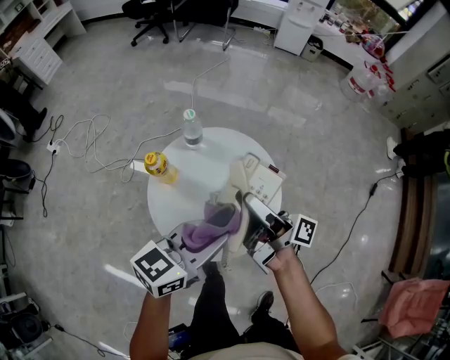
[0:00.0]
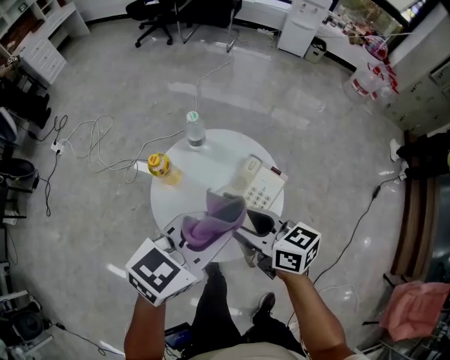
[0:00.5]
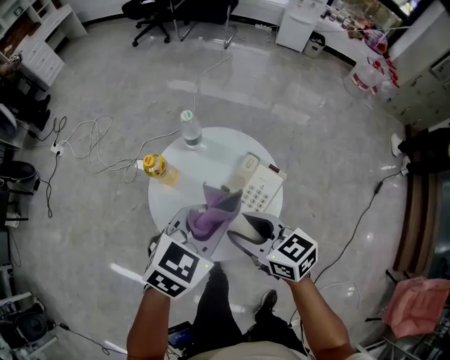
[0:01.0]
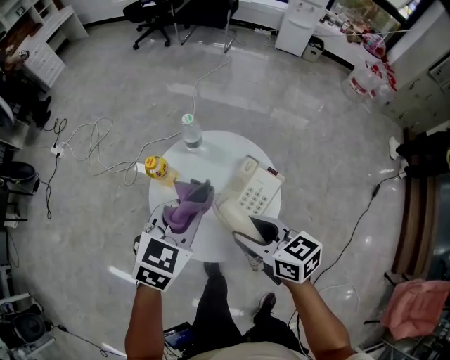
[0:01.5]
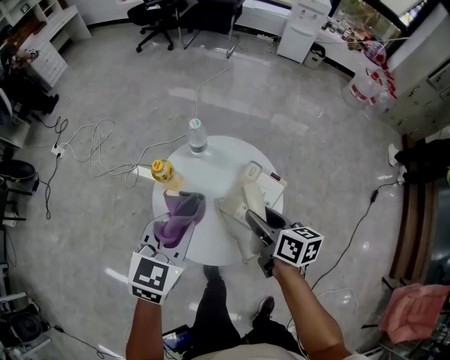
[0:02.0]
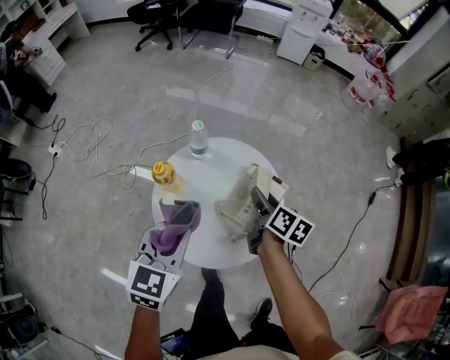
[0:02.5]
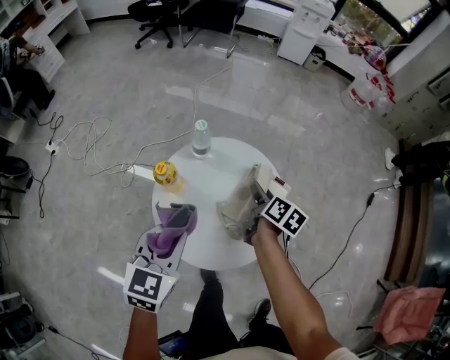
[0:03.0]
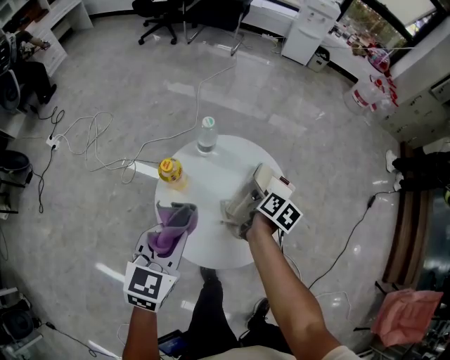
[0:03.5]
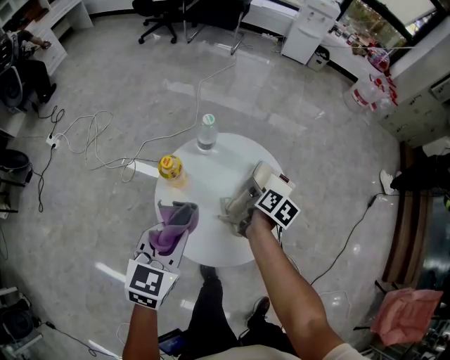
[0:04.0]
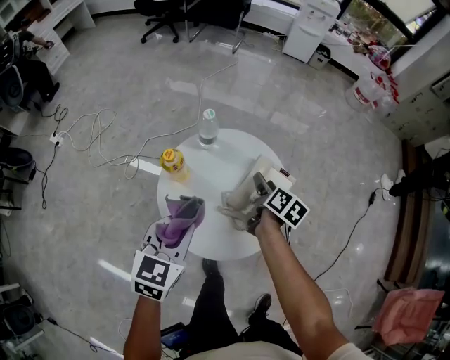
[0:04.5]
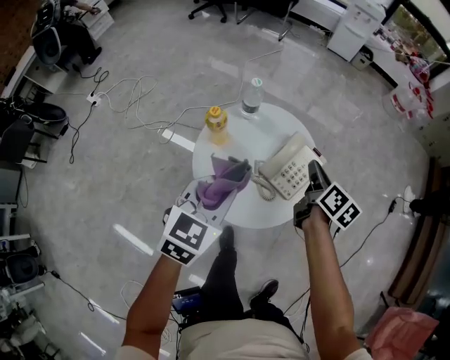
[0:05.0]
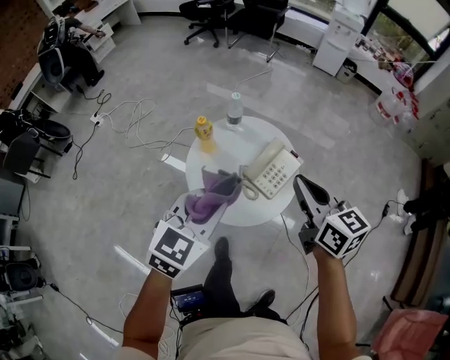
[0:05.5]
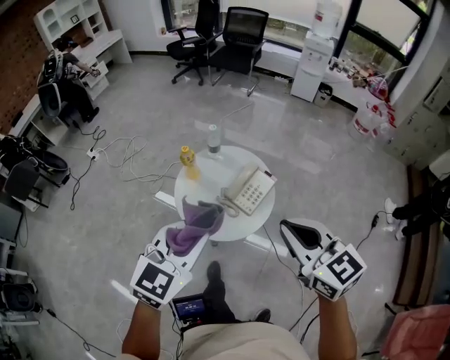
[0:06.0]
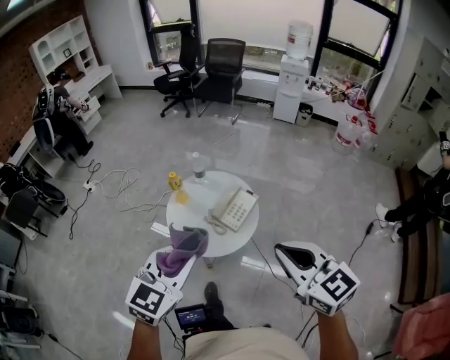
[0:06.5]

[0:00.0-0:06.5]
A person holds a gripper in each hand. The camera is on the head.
0:00.0 to 0:02.0: The right gripper heads downward, covering about 5 cm, and tilts its fingers roughly 40 degrees downward; the left gripper moves to the left, approximately 10 cm, and swivels roughly 40 degrees.
0:02.0 to 0:04.5: The right gripper is displaced downward and forward by roughly 15 cm, and rotates approximately 30 degrees. The left gripper changes place by roughly 5 cm.
0:04.5 to 0:06.5: The left gripper heads upward, backward and to the right, covering roughly 40 cm; the right gripper heads upward and backward, covering about 60 cm, rolls counterclockwise, seen from behind, by some 60 degrees, and closes.

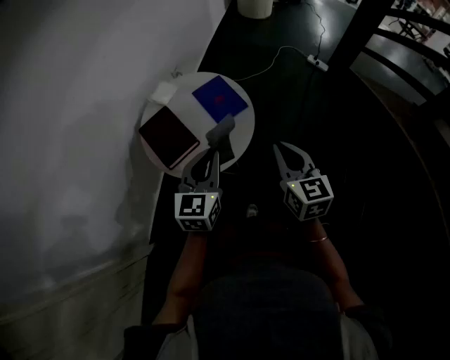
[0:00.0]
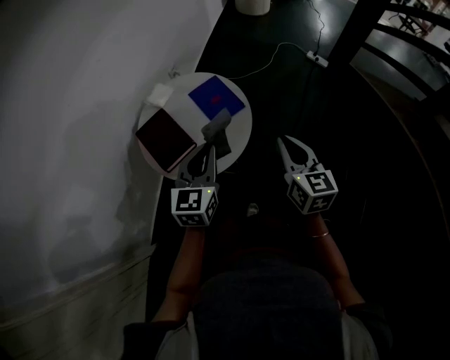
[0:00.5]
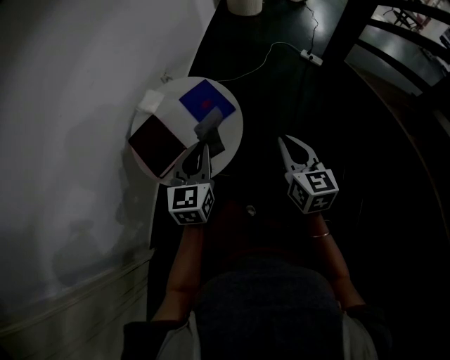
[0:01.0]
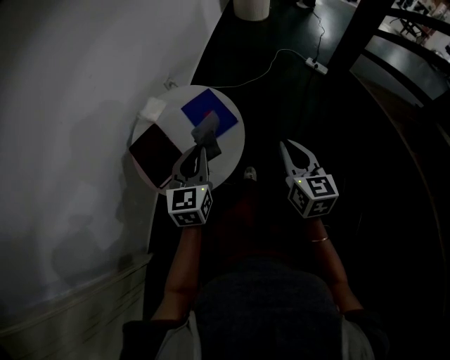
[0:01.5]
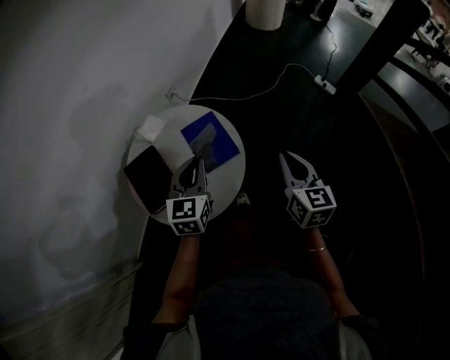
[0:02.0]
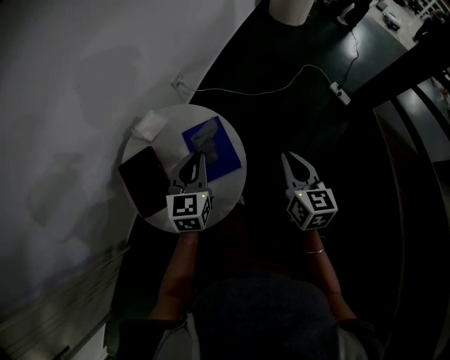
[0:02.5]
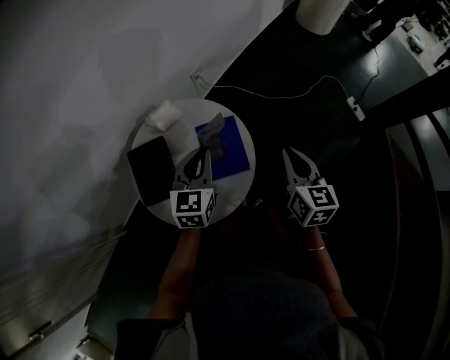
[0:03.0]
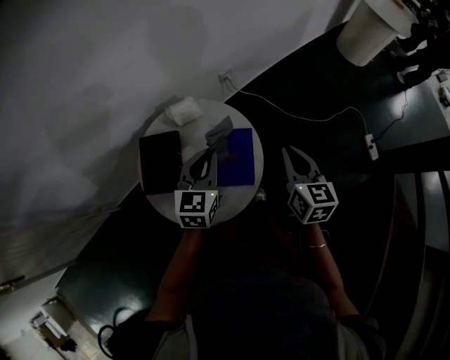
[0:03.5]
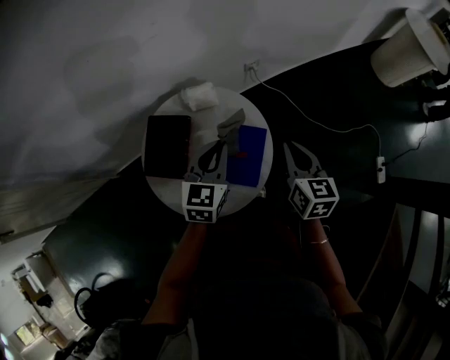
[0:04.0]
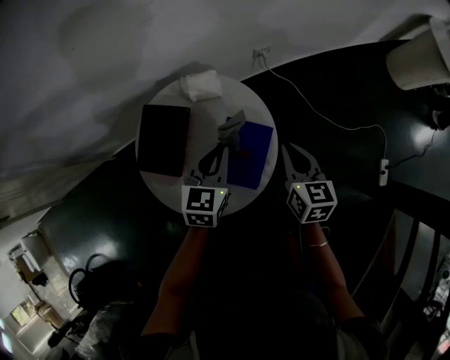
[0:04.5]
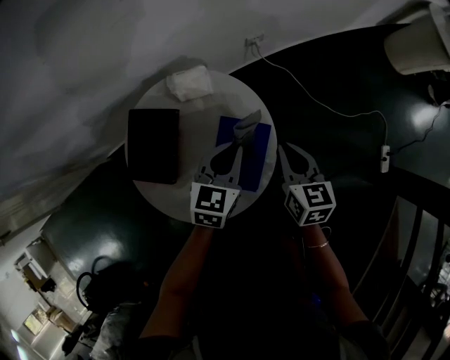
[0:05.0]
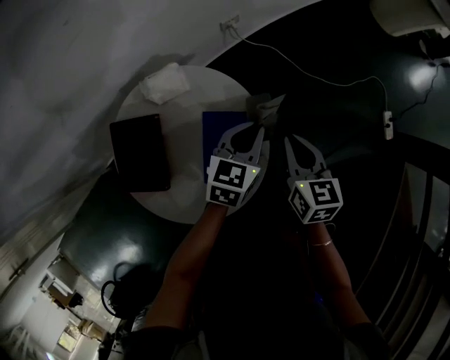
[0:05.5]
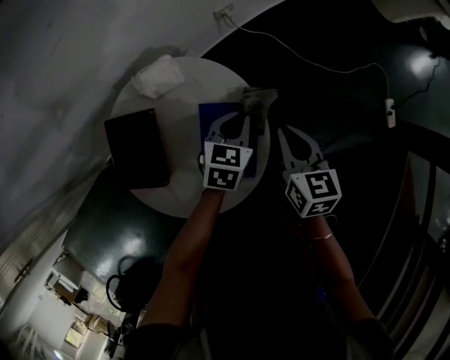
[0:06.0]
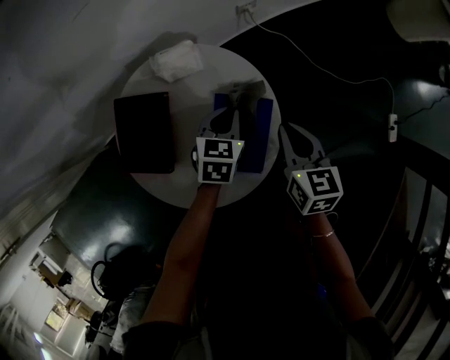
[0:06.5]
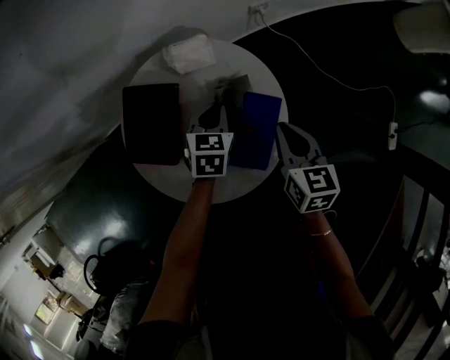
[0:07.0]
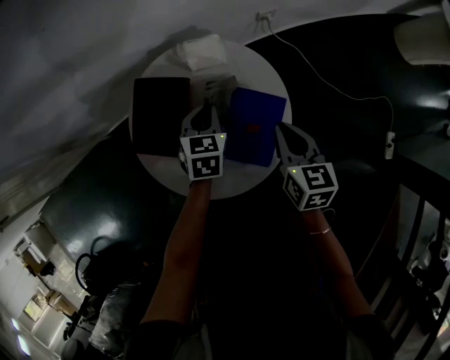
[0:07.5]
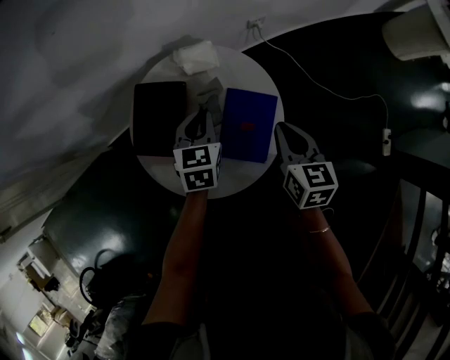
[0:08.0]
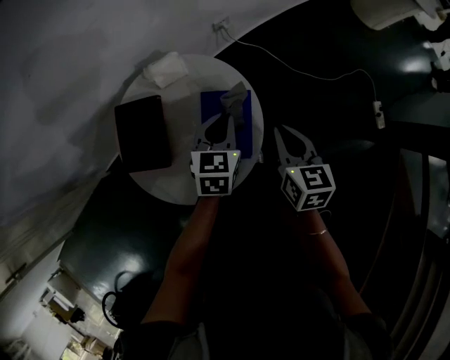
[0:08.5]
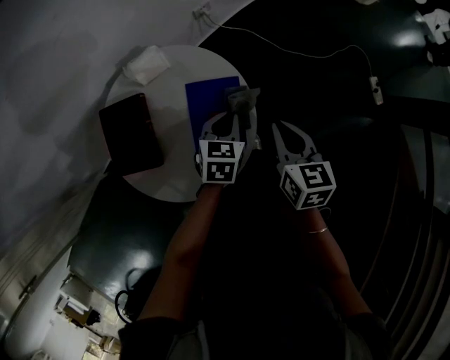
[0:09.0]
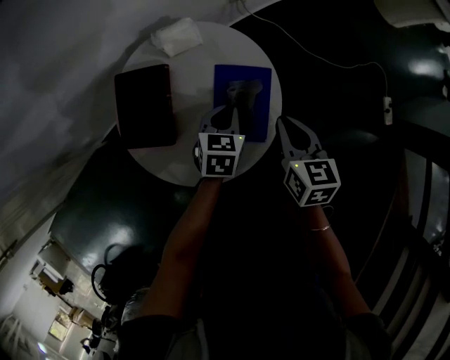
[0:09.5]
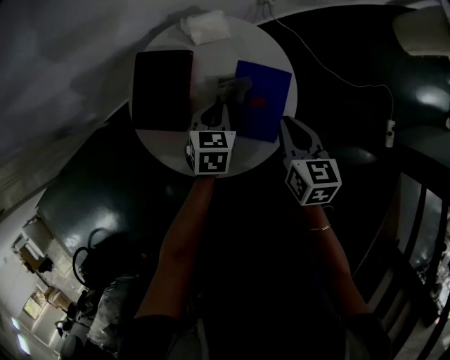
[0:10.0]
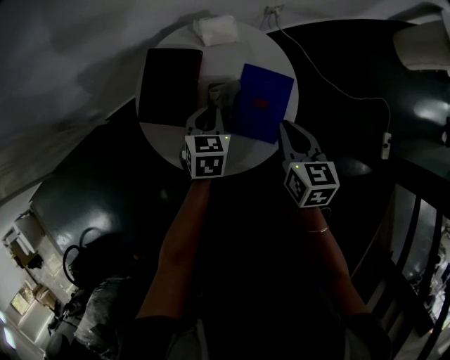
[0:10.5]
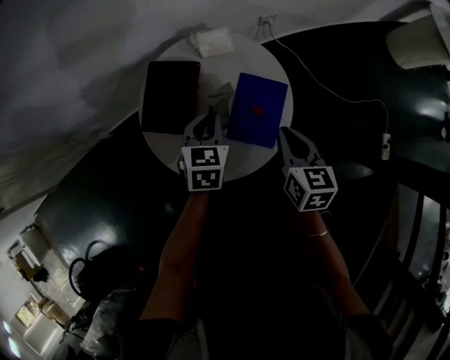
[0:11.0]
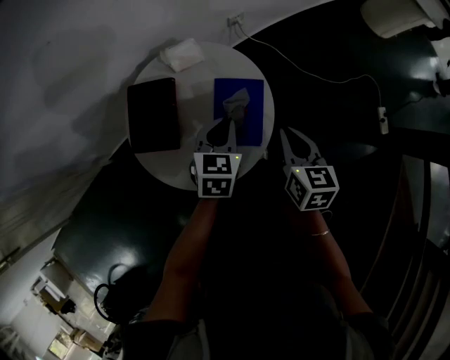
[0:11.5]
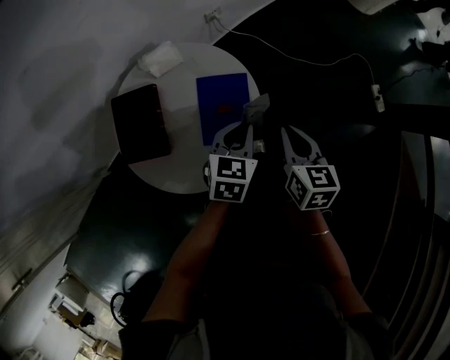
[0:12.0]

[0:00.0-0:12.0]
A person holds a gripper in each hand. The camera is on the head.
0:00.0 to 0:02.0: The left gripper heads forward, covering some 20 cm; the right gripper moves forward and to the right, roughly 20 cm.
0:02.0 to 0:04.0: The right gripper changes place by about 30 cm, and changes its angle by about 40 degrees, while the left gripper changes place by some 15 cm, and rotates roughly 30 degrees.
0:04.0 to 0:06.0: The left gripper heads downward and to the right, covering approximately 20 cm, and swivels roughly 30 degrees; the right gripper heads downward, covering approximately 10 cm.
0:06.0 to 0:08.0: The right gripper moves to the left, some 5 cm. The left gripper travels to the left by approximately 20 cm, and rotates approximately 30 degrees.
0:08.0 to 0:10.0: The left gripper travels downward and backward by about 10 cm, and moves roughly 15 cm to the right and comes back; the right gripper goes to the right and returns, roughly 5 cm each way.
0:10.0 to 0:12.0: The left gripper shifts by about 15 cm, and changes its angle by some 30 degrees, while the right gripper shifts by some 10 cm.

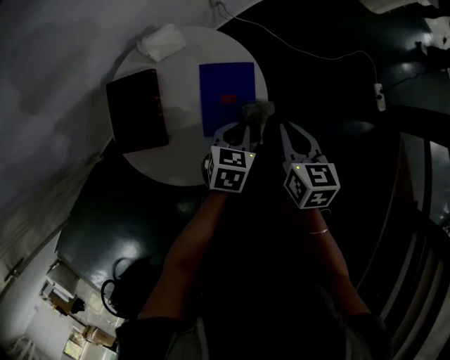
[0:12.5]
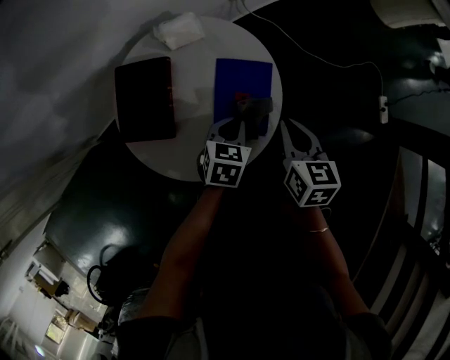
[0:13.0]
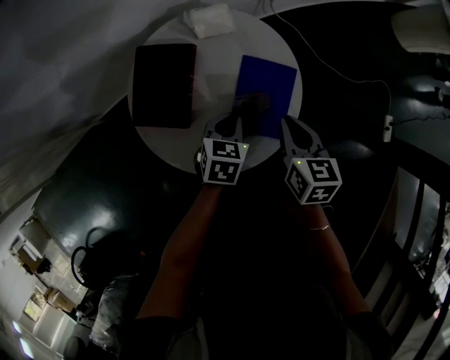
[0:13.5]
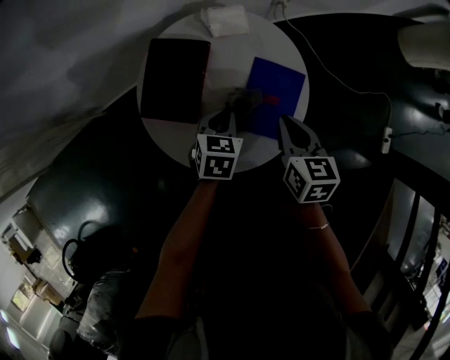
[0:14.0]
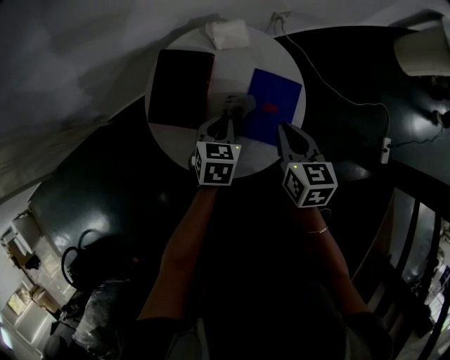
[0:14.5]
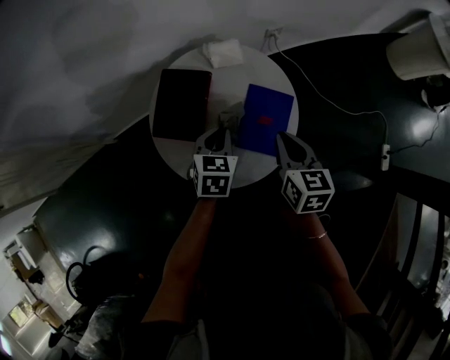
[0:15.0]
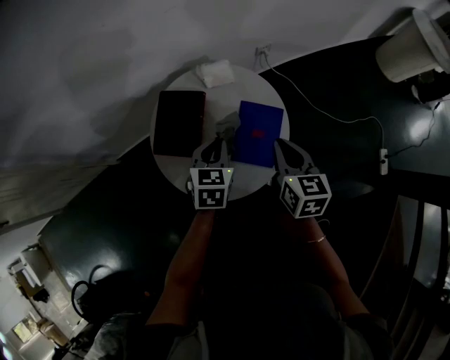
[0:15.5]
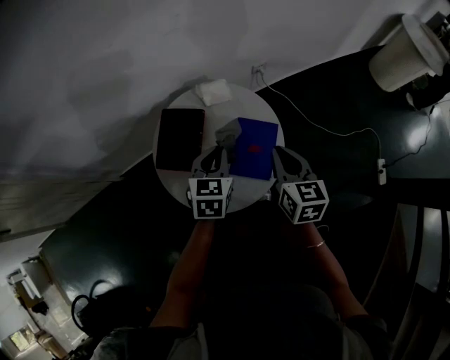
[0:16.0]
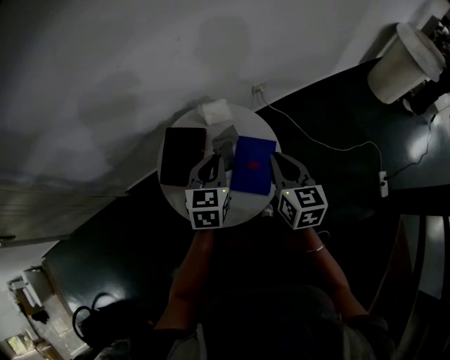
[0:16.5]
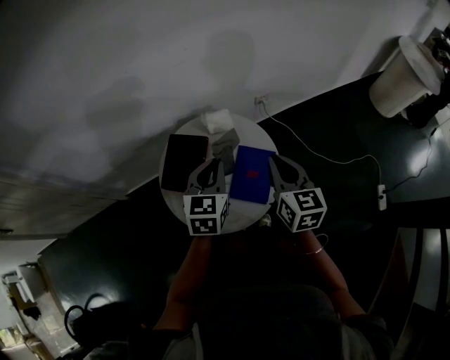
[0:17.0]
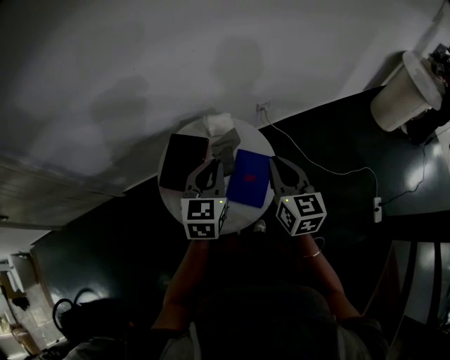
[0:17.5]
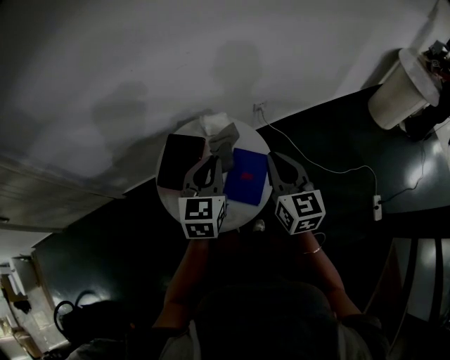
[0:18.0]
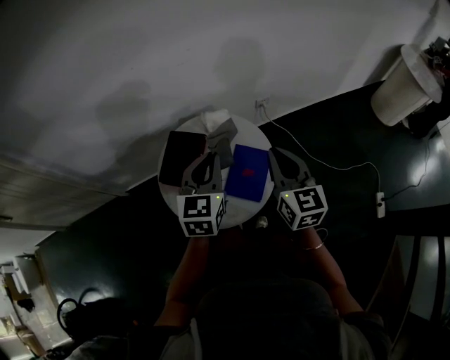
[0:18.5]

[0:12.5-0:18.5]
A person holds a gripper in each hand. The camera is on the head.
0:12.5 to 0:14.5: The grippers both shift to the left by approximately 15 cm. The left gripper swivels about 20 degrees.
0:14.5 to 0:16.5: The grippers both shift upward by about 15 cm. The left gripper rotates approximately 20 degrees.
0:16.5 to 0:18.5: The two grippers go some 10 cm upward.

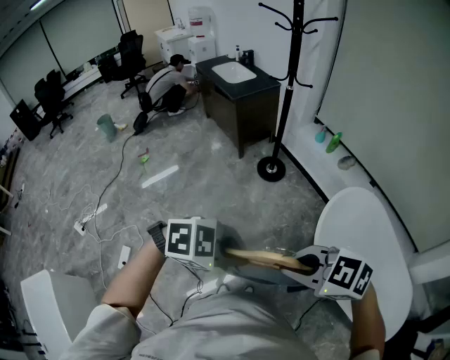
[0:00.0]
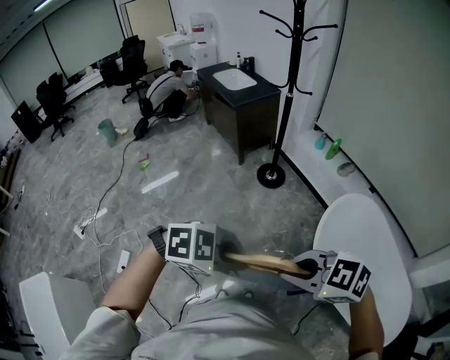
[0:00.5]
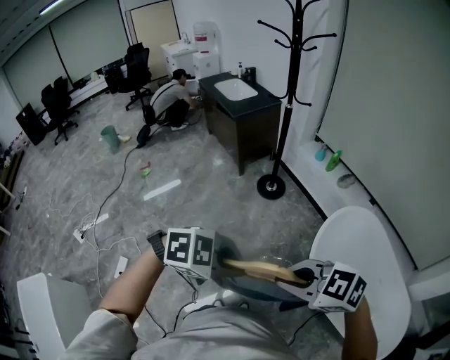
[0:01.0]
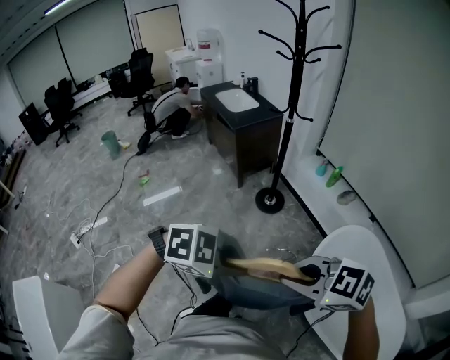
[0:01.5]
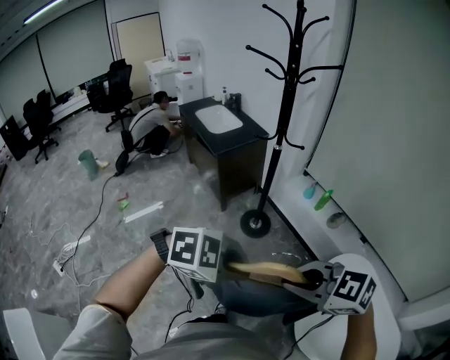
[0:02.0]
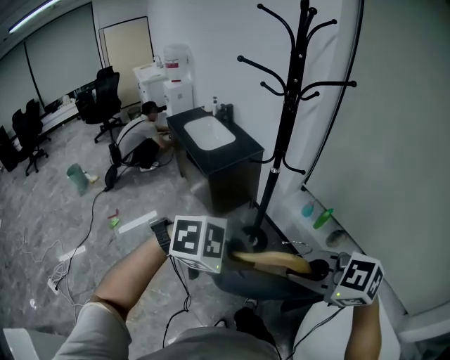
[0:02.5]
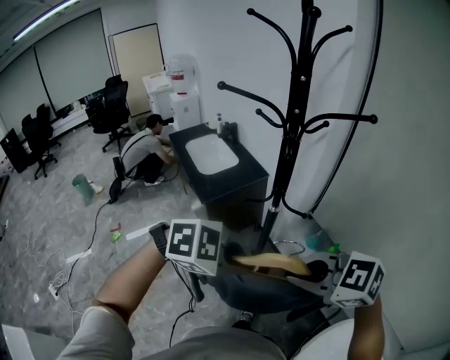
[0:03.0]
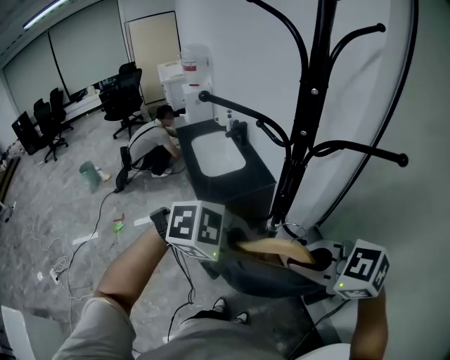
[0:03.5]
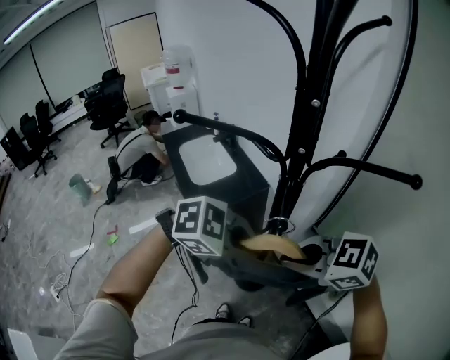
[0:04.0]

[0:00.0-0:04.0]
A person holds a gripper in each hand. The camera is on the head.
0:00.0 to 0:02.0: The right gripper ends up about 30 cm from where it was; the left gripper ends up some 30 cm from where it was.
0:02.0 to 0:04.0: The pair of grippers is taken about 60 cm.
